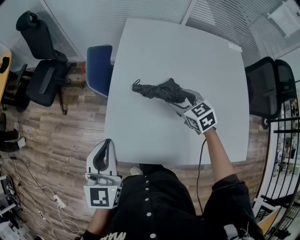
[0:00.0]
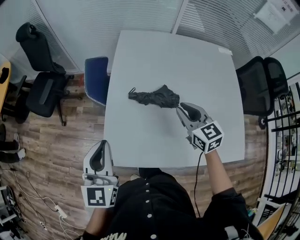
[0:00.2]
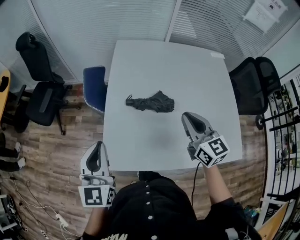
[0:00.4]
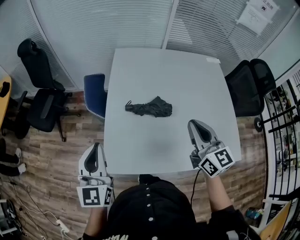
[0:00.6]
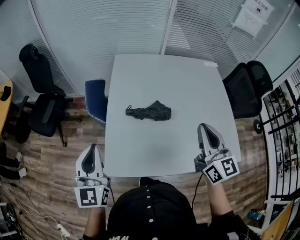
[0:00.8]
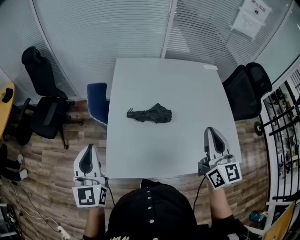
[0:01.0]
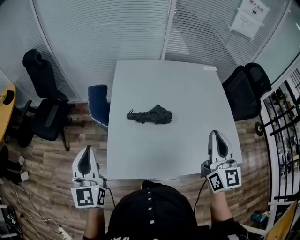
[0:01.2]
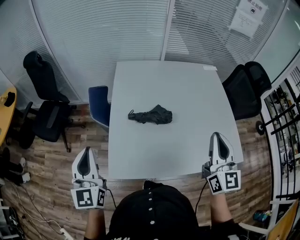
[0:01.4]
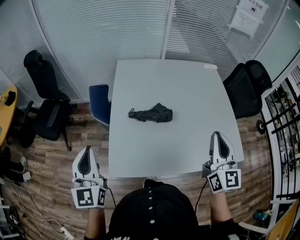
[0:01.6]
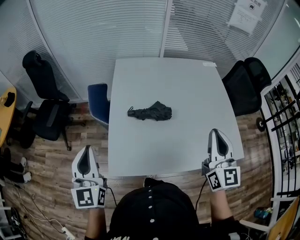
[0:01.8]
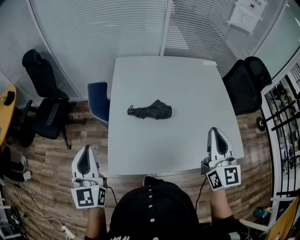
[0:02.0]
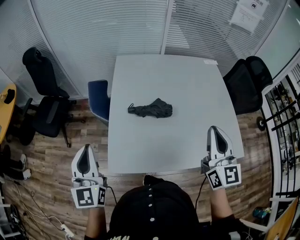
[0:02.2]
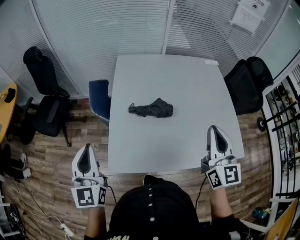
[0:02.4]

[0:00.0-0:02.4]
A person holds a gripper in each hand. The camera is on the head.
0:00.0 to 0:01.2: The right gripper heads upward, backward and to the right, covering roughly 35 cm, angles its fingers upward, by approximately 40 degrees, and closes its fingers. The left gripper shifts some 10 cm upward and to the left.
0:01.2 to 0:02.4: The grippers stay close to where they were, moving slightly.

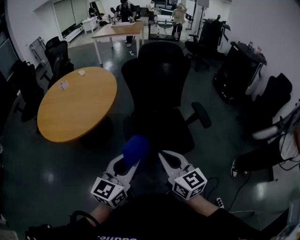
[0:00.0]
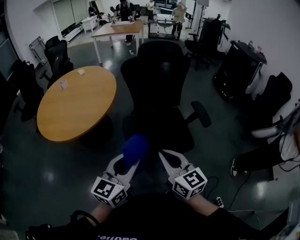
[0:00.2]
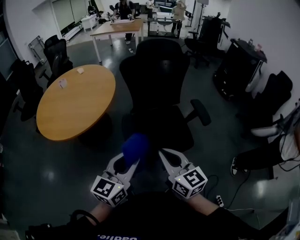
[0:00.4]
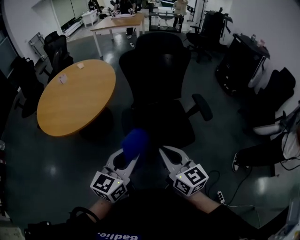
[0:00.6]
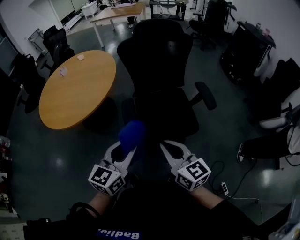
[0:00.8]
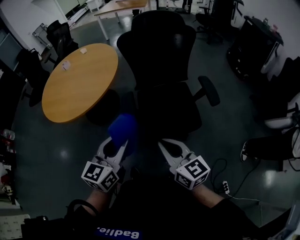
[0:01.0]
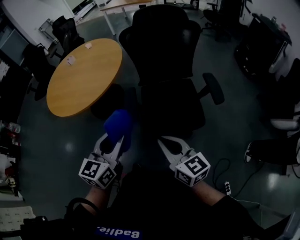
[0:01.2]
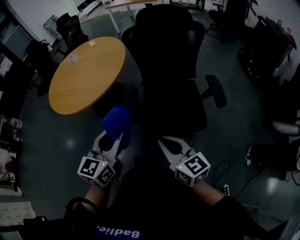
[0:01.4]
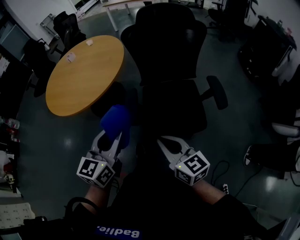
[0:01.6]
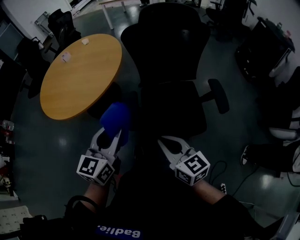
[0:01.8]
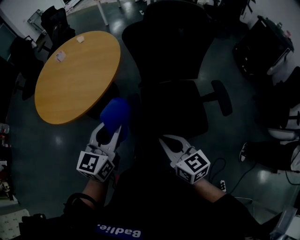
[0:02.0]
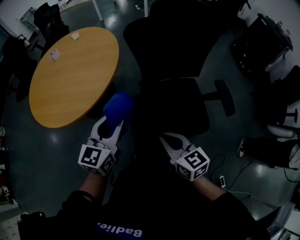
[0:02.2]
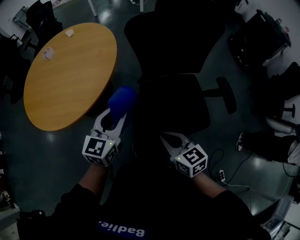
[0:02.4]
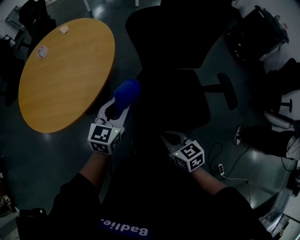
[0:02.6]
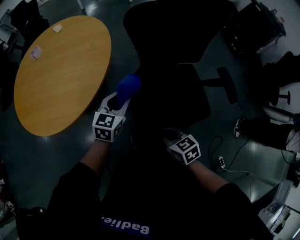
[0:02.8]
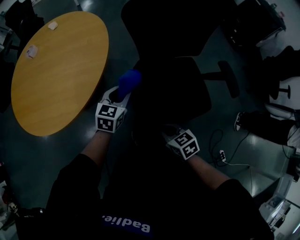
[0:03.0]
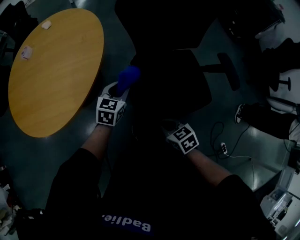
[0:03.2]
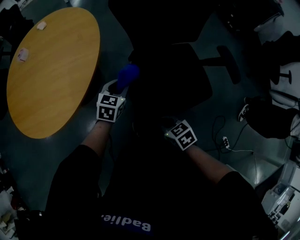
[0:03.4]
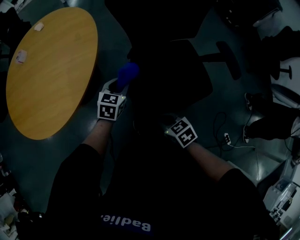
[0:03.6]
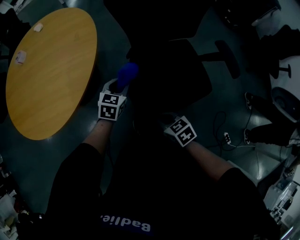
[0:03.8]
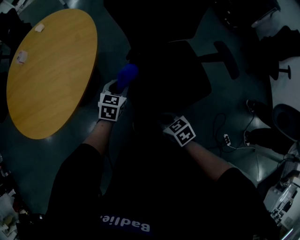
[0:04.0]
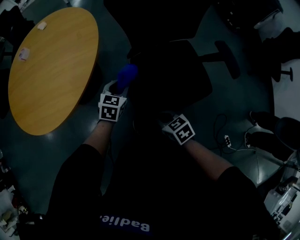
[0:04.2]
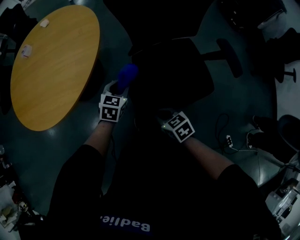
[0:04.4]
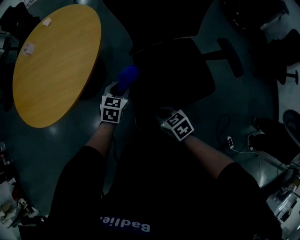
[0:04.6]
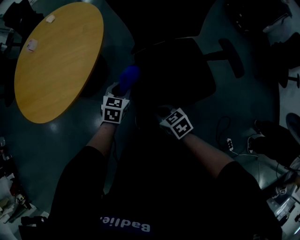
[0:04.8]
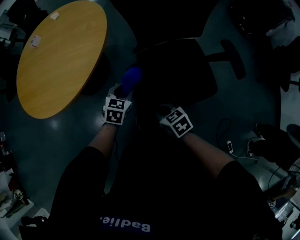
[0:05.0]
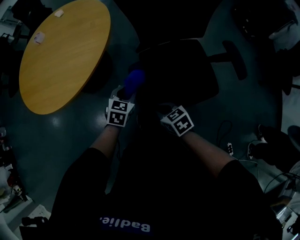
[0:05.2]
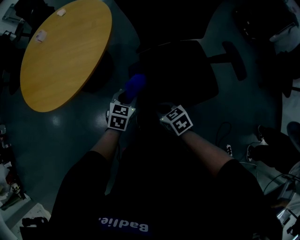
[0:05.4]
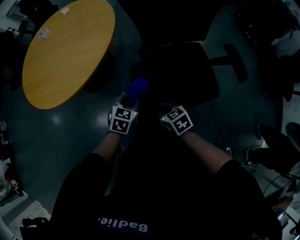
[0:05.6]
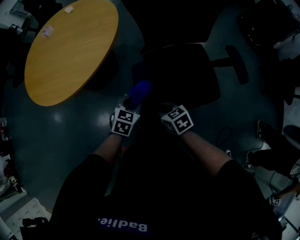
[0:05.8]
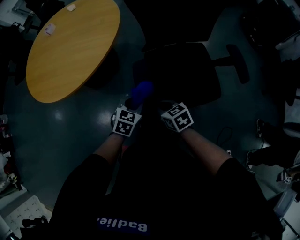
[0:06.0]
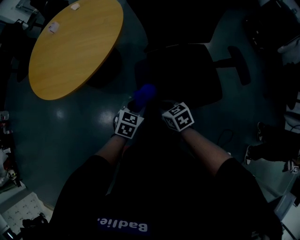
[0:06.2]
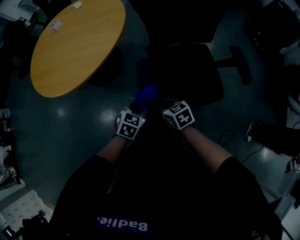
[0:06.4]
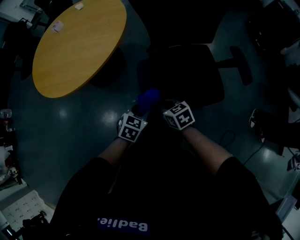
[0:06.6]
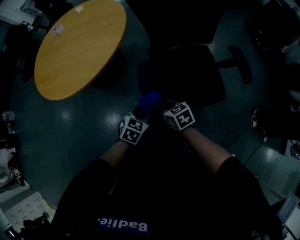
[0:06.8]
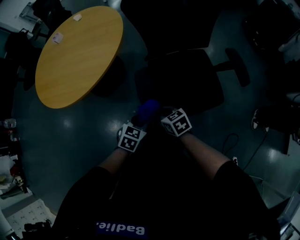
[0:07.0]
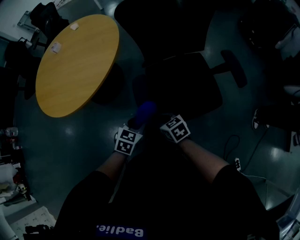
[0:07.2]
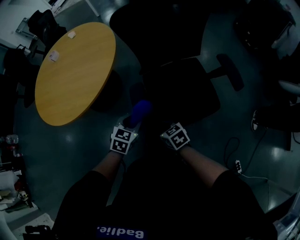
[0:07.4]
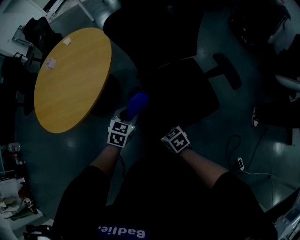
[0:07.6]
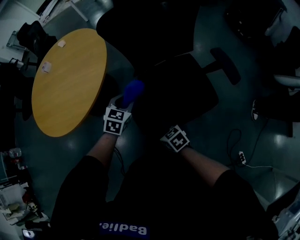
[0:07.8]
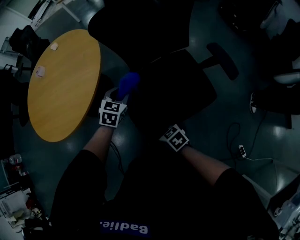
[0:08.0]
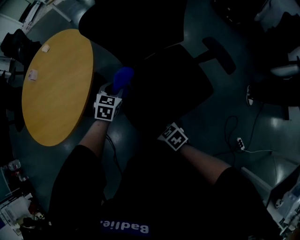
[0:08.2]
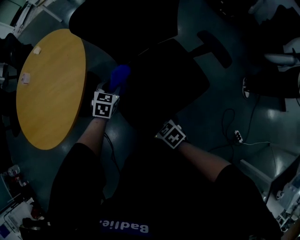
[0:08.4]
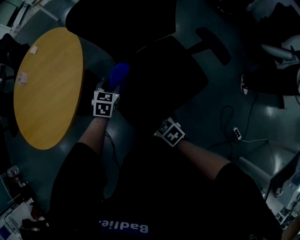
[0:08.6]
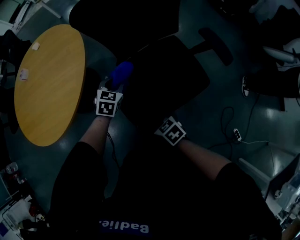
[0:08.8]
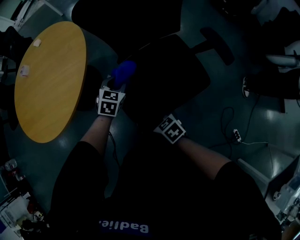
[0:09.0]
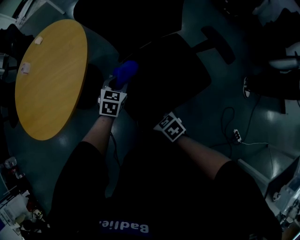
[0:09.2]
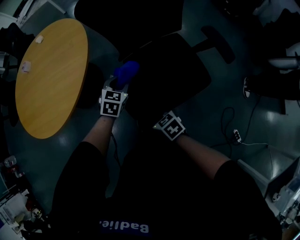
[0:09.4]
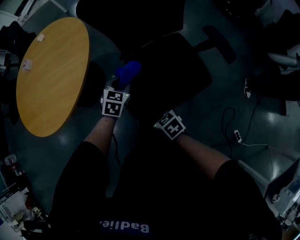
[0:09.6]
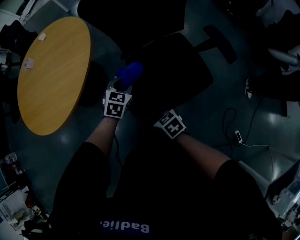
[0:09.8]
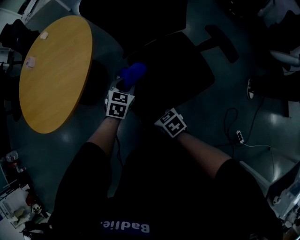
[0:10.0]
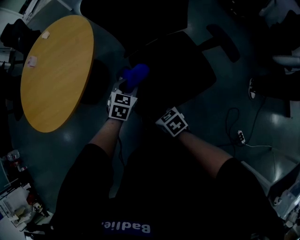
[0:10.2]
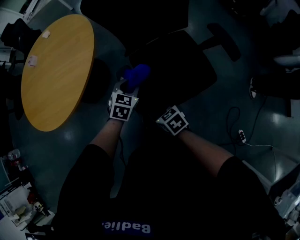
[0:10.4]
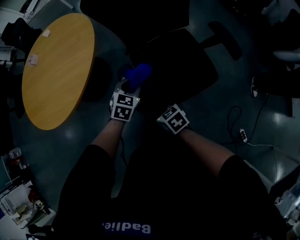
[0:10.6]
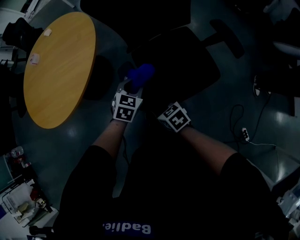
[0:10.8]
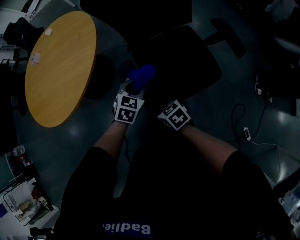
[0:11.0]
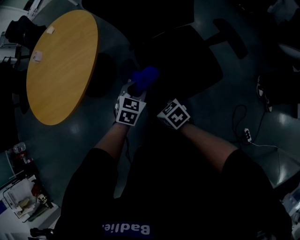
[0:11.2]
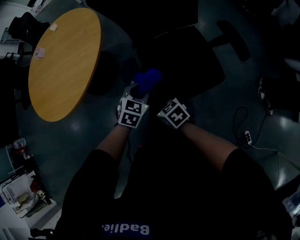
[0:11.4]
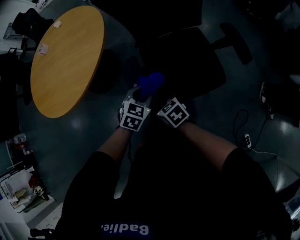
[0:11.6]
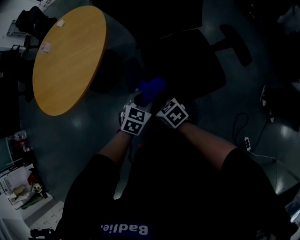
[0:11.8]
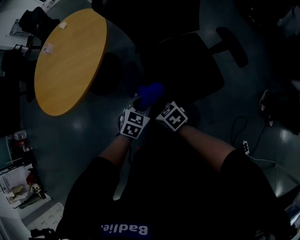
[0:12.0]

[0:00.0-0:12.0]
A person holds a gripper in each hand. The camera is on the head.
0:00.0 to 0:01.6: The left gripper shifts some 5 cm forward, while the right gripper heads downward, covering about 10 cm.
0:01.6 to 0:03.0: The left gripper moves forward and downward, roughly 40 cm, and swivels some 30 degrees; the right gripper is displaced downward, forward and to the left by some 30 cm, and angles its fingers downward, by about 40 degrees.
0:03.0 to 0:04.4: The left gripper moves downward, some 5 cm.
0:04.4 to 0:06.0: The left gripper heads backward, covering about 15 cm.
0:06.0 to 0:07.6: The left gripper heads upward and forward, covering roughly 5 cm.
0:07.6 to 0:09.0: The left gripper shifts some 10 cm forward.
0:09.0 to 0:10.4: The left gripper heads backward, covering roughly 5 cm.
0:10.4 to 0:12.0: The left gripper goes approximately 10 cm backward.

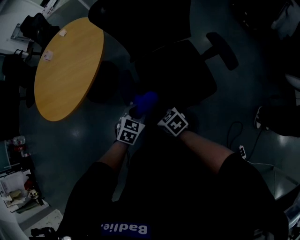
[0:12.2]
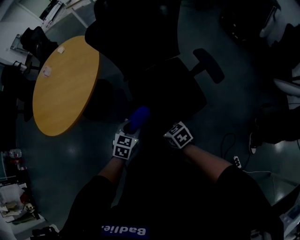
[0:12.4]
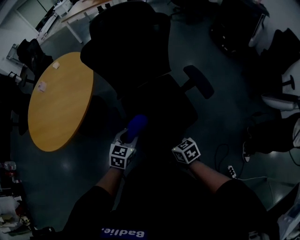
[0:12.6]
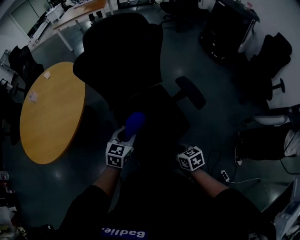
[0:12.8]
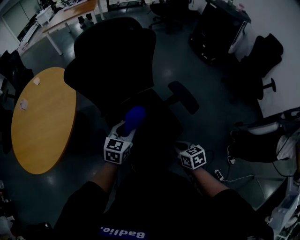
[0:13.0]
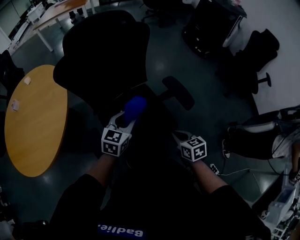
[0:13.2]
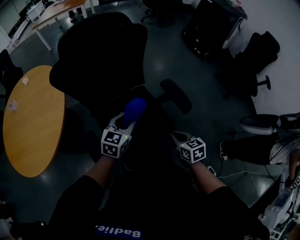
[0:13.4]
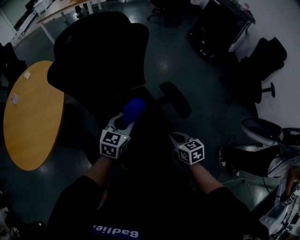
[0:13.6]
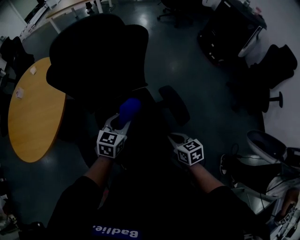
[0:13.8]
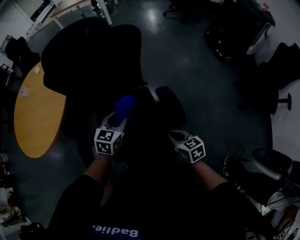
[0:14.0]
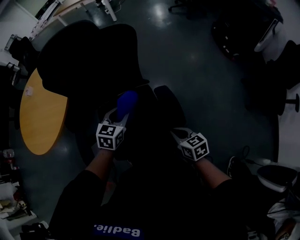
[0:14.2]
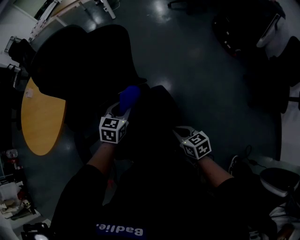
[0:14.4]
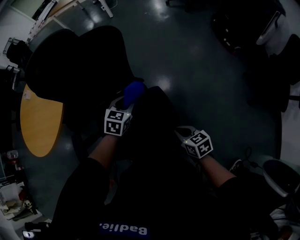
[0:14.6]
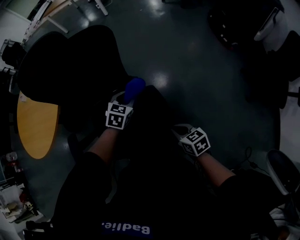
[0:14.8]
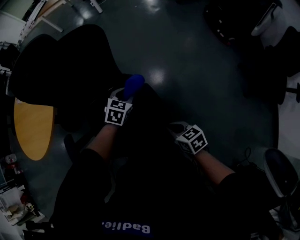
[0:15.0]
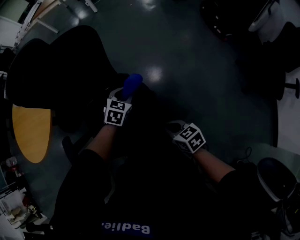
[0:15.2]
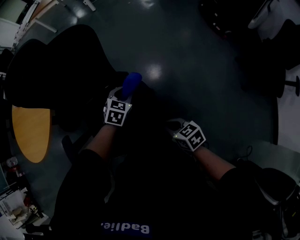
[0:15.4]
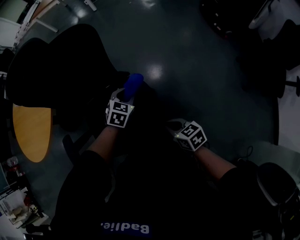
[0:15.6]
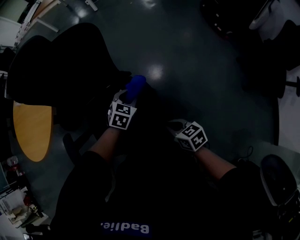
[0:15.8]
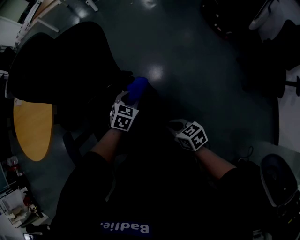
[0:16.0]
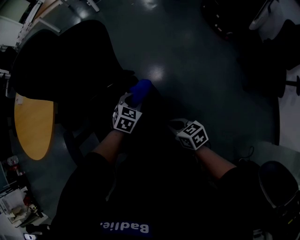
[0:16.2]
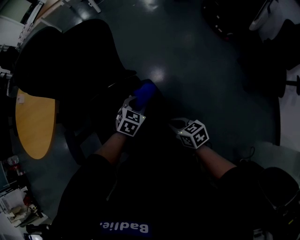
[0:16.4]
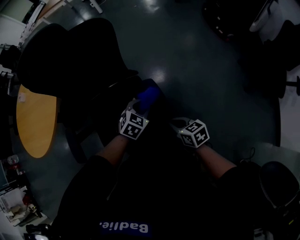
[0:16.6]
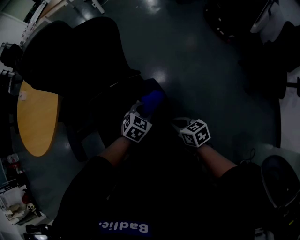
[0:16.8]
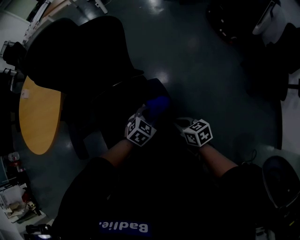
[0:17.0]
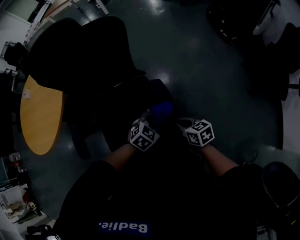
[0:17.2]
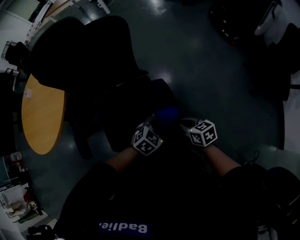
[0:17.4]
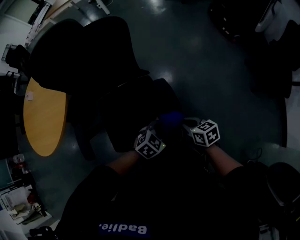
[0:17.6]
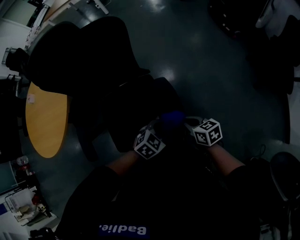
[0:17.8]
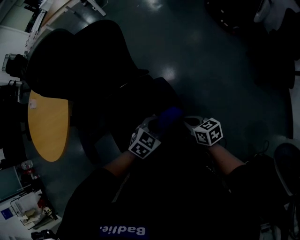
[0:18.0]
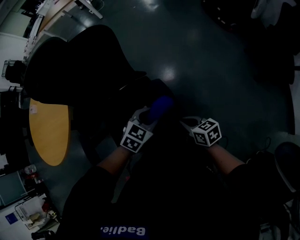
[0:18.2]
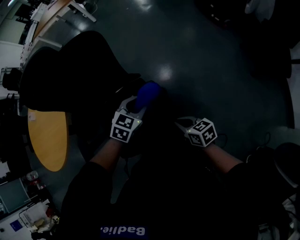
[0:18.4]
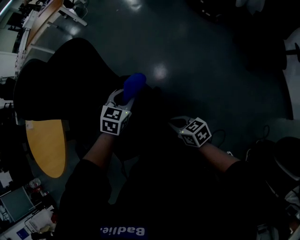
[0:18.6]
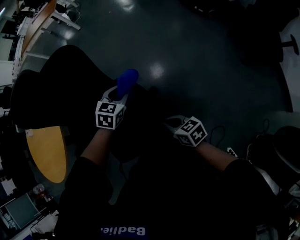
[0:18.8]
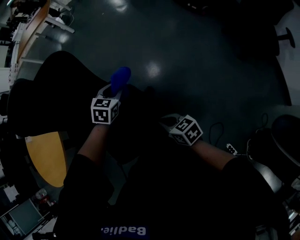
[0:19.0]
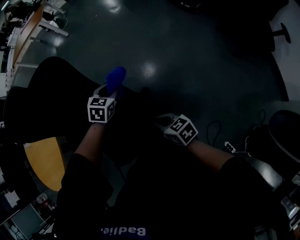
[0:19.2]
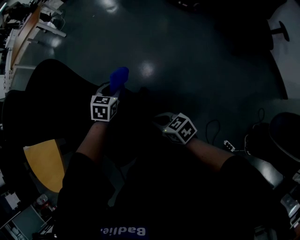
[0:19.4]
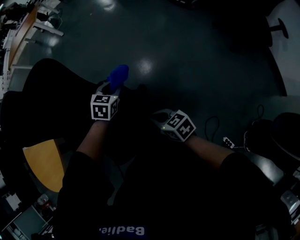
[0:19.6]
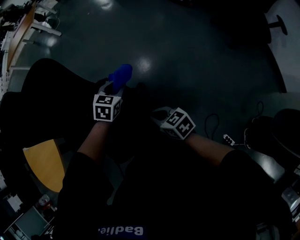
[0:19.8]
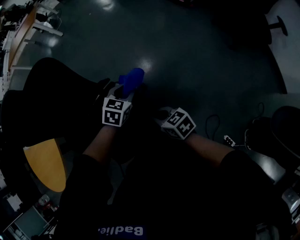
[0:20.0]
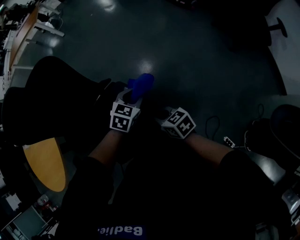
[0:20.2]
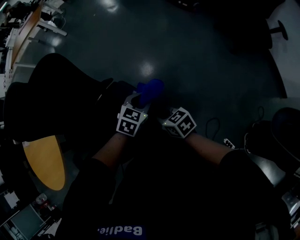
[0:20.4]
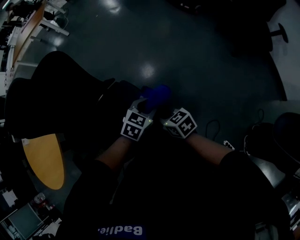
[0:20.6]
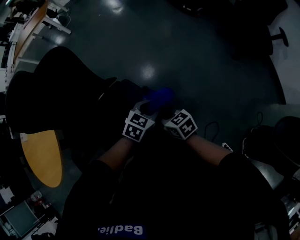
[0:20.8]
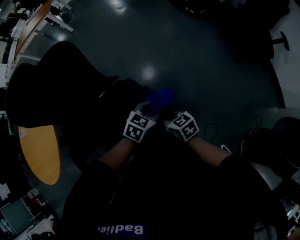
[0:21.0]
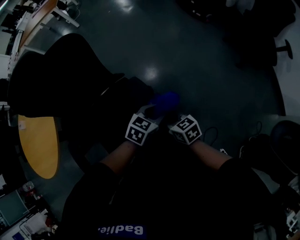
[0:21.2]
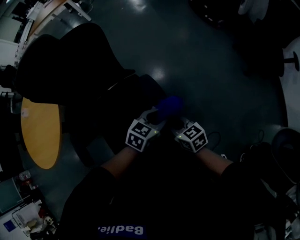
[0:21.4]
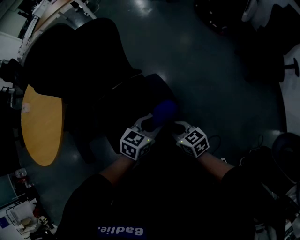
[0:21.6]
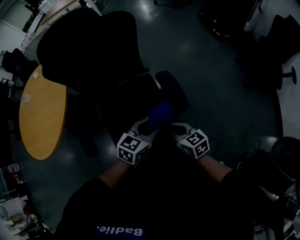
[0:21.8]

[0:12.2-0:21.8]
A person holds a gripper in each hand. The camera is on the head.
0:12.2 to 0:13.8: The left gripper shifts by approximately 30 cm, and changes its angle by about 20 degrees, while the right gripper ends up some 40 cm from where it was, and turns by some 30 degrees.
0:13.8 to 0:15.4: The left gripper is displaced to the right, downward and forward by approximately 25 cm, and swivels approximately 20 degrees; the right gripper moves to the right and downward, roughly 15 cm.
0:15.4 to 0:17.0: The left gripper heads backward, covering approximately 15 cm.
0:17.0 to 0:18.6: The left gripper is displaced forward and upward by some 15 cm.
0:18.6 to 0:20.2: The left gripper shifts about 15 cm to the right, downward and backward.
0:20.2 to 0:21.8: The left gripper heads backward, to the left and upward, covering roughly 25 cm, and changes its angle by some 30 degrees. The right gripper travels backward, to the left and upward by some 15 cm.
